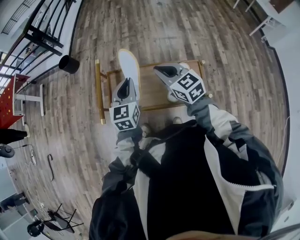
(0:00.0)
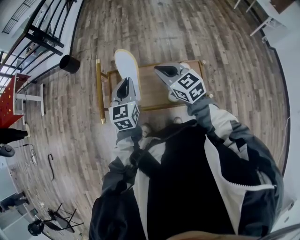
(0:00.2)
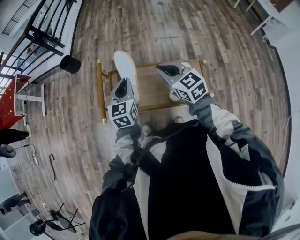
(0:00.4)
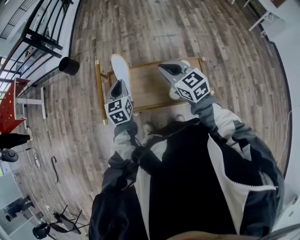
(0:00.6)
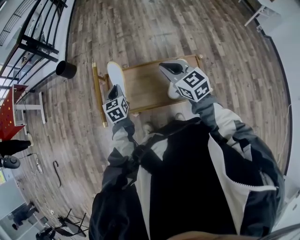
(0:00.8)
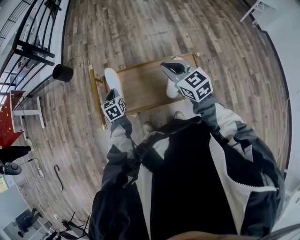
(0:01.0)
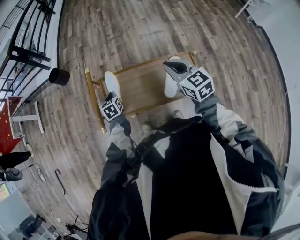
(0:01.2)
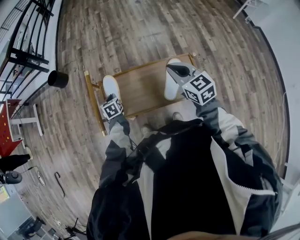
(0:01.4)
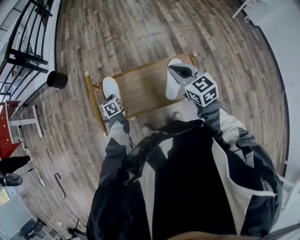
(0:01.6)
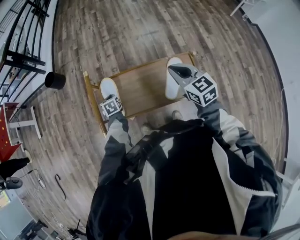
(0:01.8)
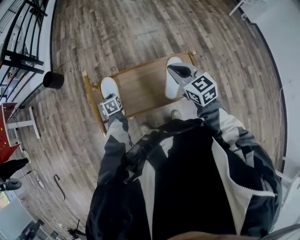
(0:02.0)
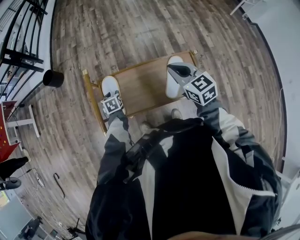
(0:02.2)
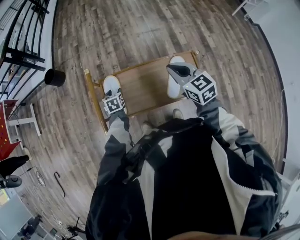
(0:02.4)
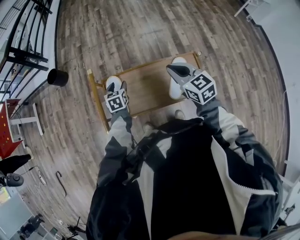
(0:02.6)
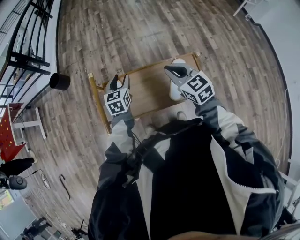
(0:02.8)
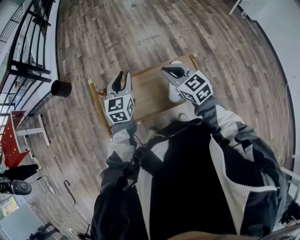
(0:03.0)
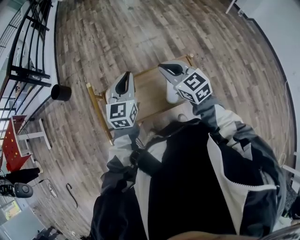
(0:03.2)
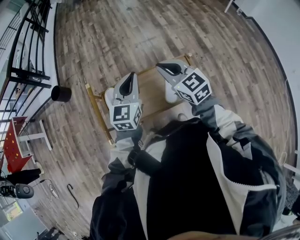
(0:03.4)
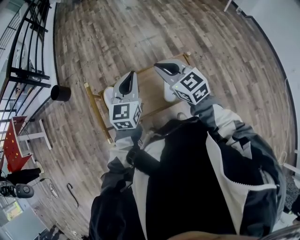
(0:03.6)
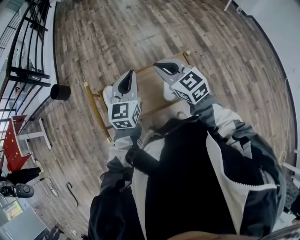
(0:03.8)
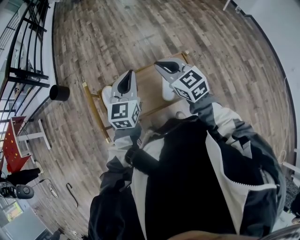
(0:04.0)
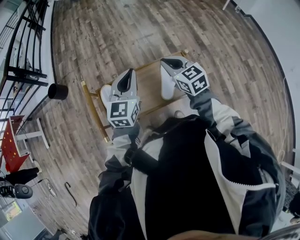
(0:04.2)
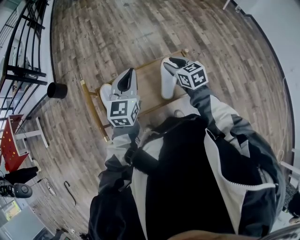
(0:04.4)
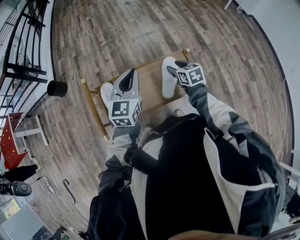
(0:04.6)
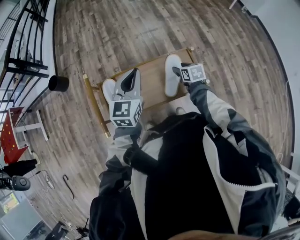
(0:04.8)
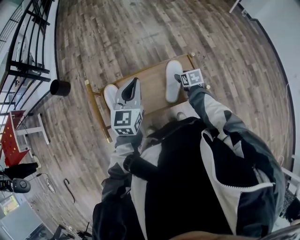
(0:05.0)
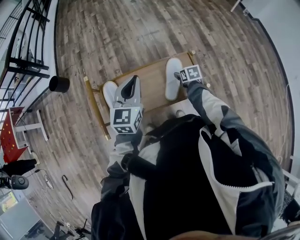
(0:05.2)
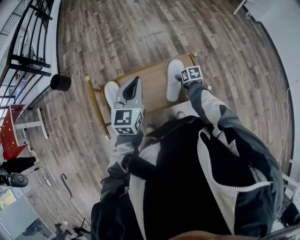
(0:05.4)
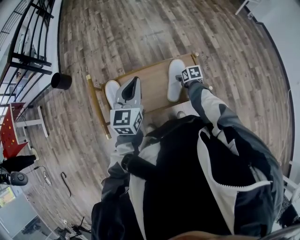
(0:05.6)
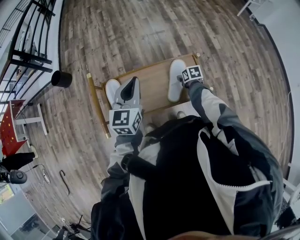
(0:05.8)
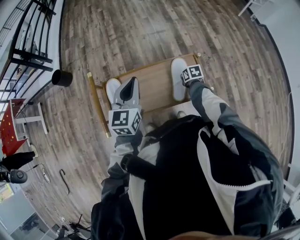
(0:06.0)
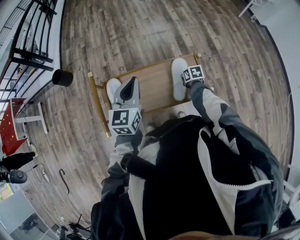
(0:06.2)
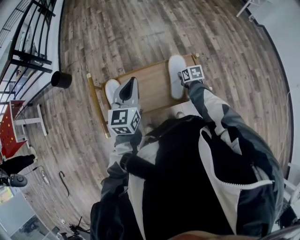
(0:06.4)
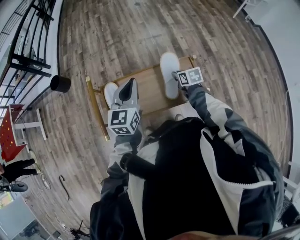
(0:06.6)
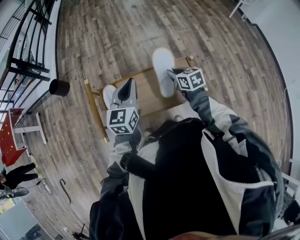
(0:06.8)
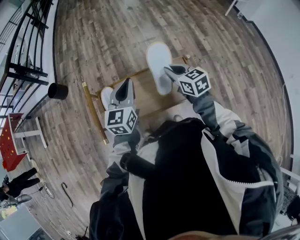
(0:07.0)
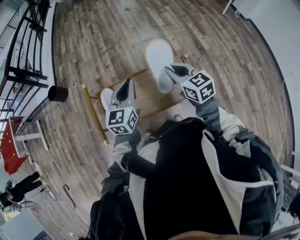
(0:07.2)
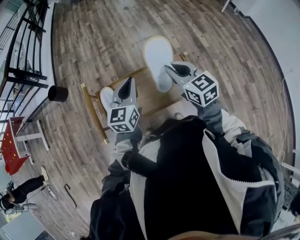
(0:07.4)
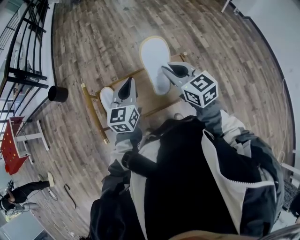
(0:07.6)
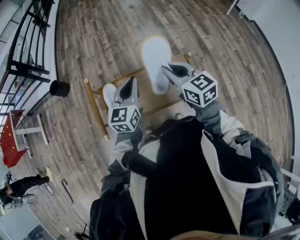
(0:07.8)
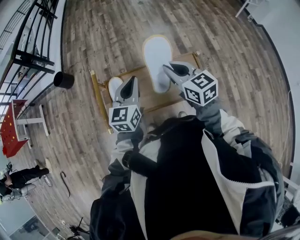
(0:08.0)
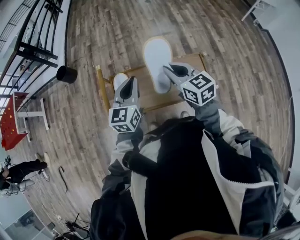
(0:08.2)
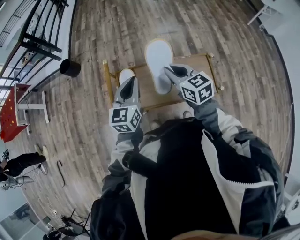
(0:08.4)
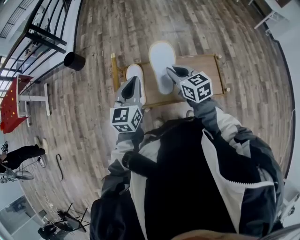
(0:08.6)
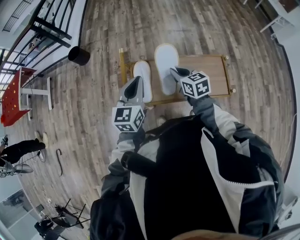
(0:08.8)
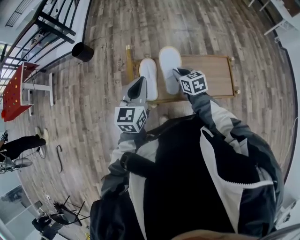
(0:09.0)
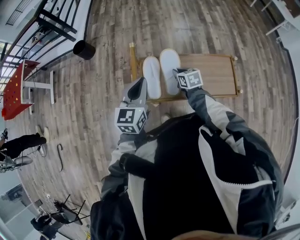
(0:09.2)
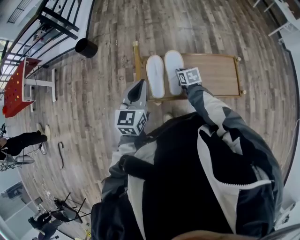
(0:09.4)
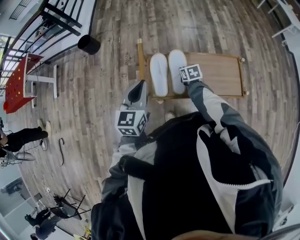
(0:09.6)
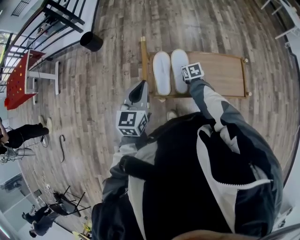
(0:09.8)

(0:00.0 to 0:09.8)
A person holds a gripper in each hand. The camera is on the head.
0:00.0 - 0:01.4: The right gripper goes approximately 10 cm to the right. The left gripper is displaced downward and to the left by approximately 25 cm, and tips its fingers downward by about 30 degrees.
0:01.4 - 0:02.8: The left gripper is displaced upward and to the right by some 15 cm, rotates about 30 degrees, and opens up.
0:02.8 - 0:04.2: The right gripper is displaced to the right by about 5 cm; the left gripper goes roughly 20 cm upward, to the right and backward, turns by some 30 degrees, and closes up.
0:04.2 - 0:05.6: The right gripper moves downward, approximately 30 cm, tilts its fingers approximately 40 degrees downward, and opens.
0:05.6 - 0:07.0: The right gripper moves upward, some 25 cm, angles its fingers upward, by approximately 30 degrees, and closes.
0:07.0 - 0:08.4: The grippers both shift to the left by approximately 10 cm.
0:08.4 - 0:09.8: The right gripper travels downward by approximately 30 cm, and angles its fingers downward, by some 40 degrees. Meanwhile the left gripper is displaced to the left by approximately 15 cm.

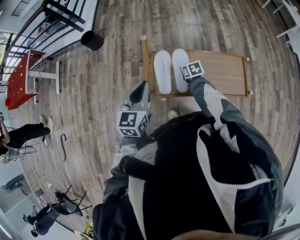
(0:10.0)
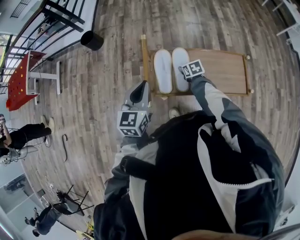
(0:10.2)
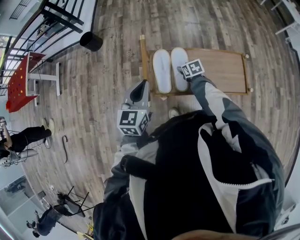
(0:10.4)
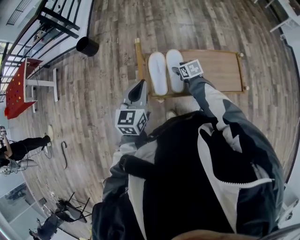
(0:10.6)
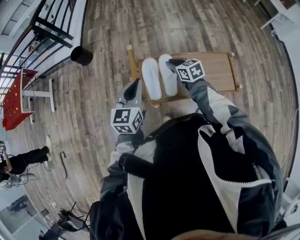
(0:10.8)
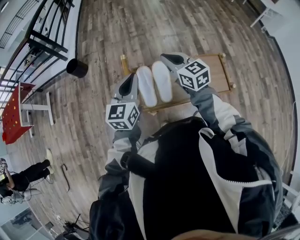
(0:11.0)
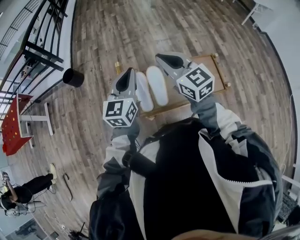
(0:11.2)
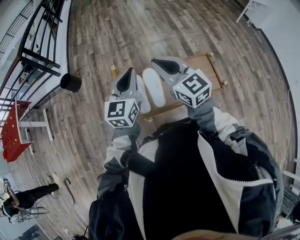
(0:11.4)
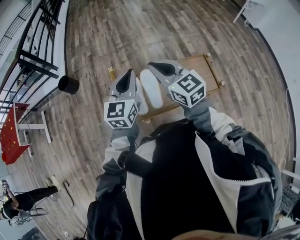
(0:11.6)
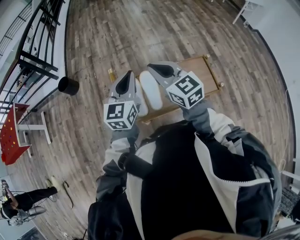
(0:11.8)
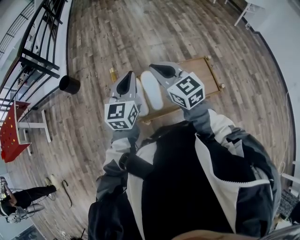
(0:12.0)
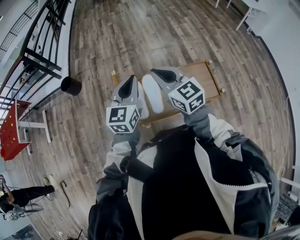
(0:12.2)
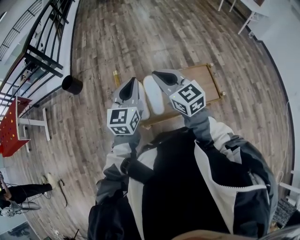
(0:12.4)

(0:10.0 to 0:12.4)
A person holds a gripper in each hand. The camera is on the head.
0:10.0 - 0:11.2: The right gripper shifts roughly 40 cm upward, tilts its fingers about 50 degrees upward, and closes its fingers; the left gripper goes roughly 15 cm upward, to the right and forward.
0:11.2 - 0:12.4: The grippers stay close to where they were, moving slightly.

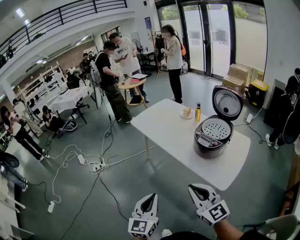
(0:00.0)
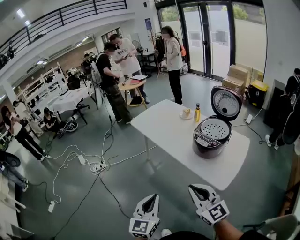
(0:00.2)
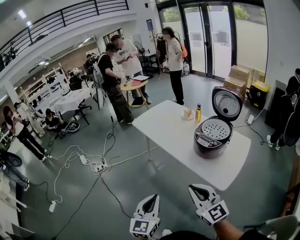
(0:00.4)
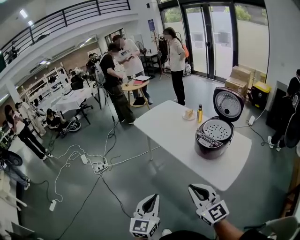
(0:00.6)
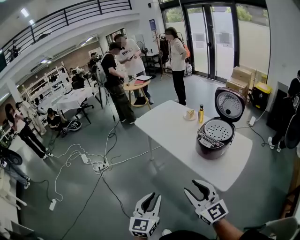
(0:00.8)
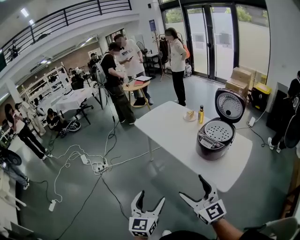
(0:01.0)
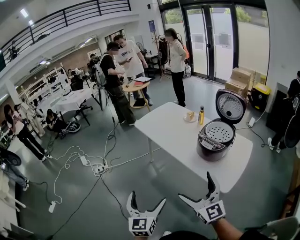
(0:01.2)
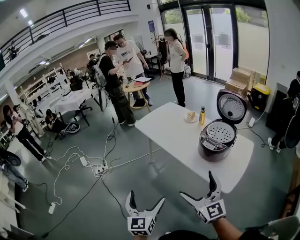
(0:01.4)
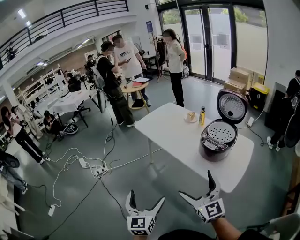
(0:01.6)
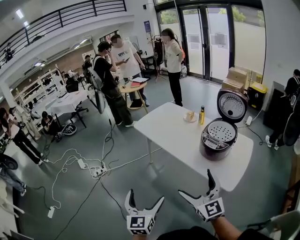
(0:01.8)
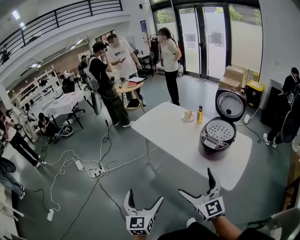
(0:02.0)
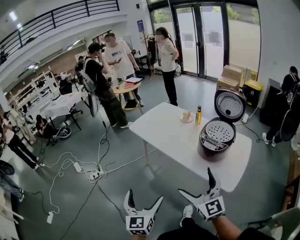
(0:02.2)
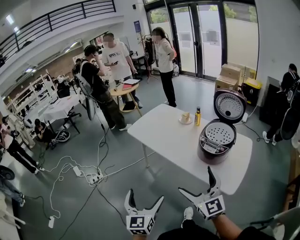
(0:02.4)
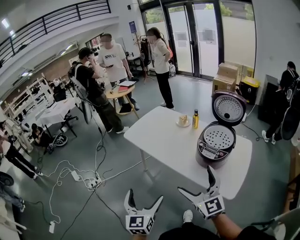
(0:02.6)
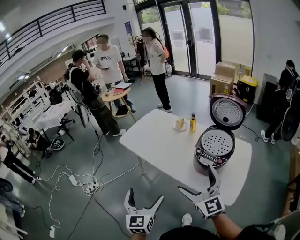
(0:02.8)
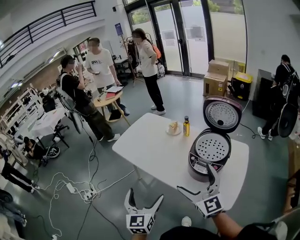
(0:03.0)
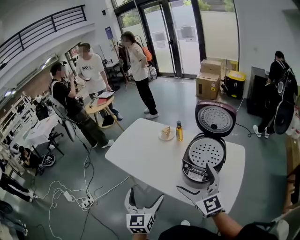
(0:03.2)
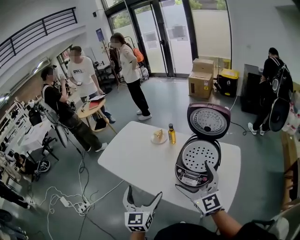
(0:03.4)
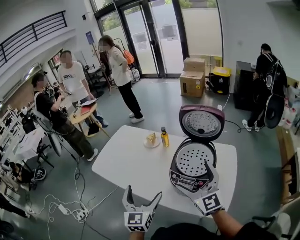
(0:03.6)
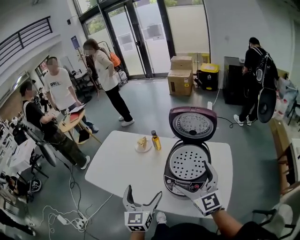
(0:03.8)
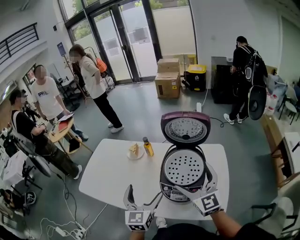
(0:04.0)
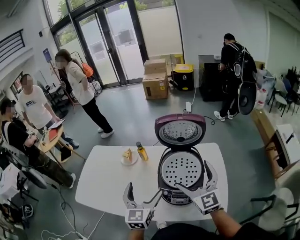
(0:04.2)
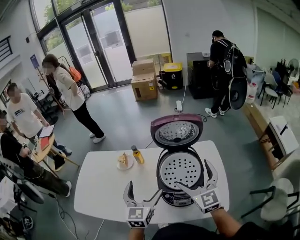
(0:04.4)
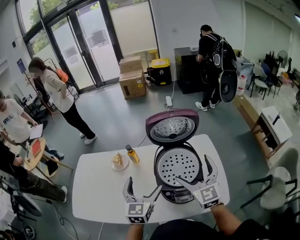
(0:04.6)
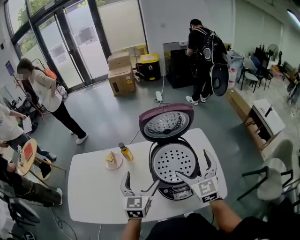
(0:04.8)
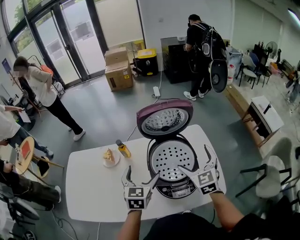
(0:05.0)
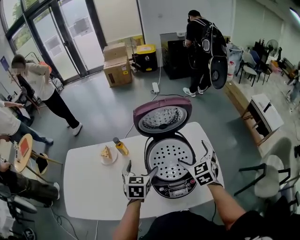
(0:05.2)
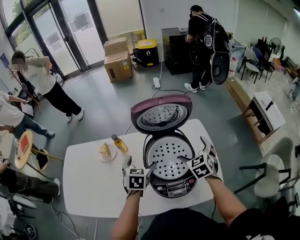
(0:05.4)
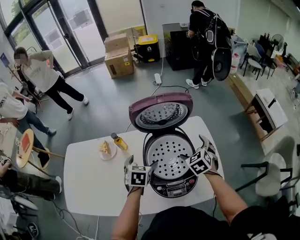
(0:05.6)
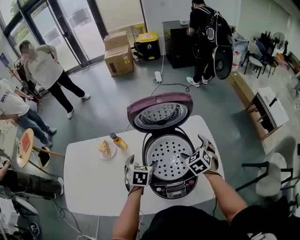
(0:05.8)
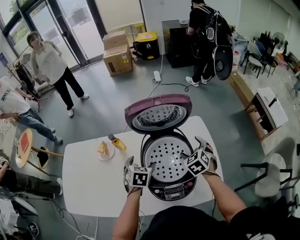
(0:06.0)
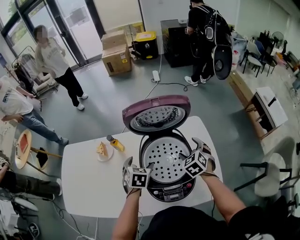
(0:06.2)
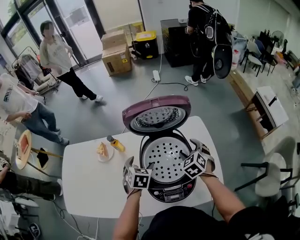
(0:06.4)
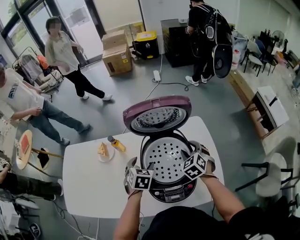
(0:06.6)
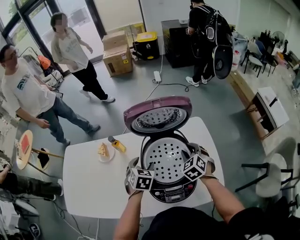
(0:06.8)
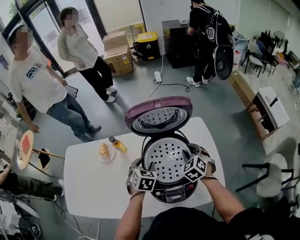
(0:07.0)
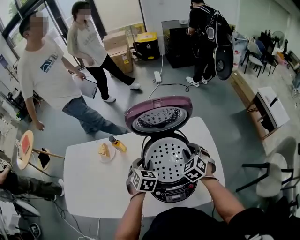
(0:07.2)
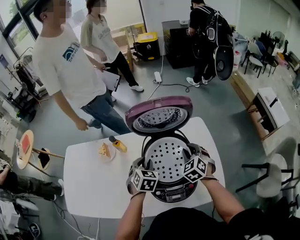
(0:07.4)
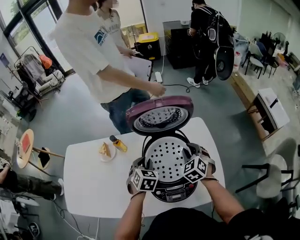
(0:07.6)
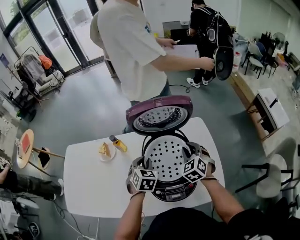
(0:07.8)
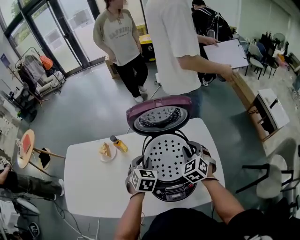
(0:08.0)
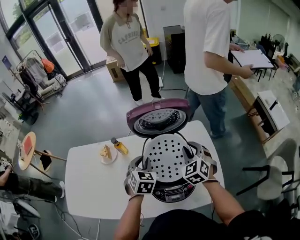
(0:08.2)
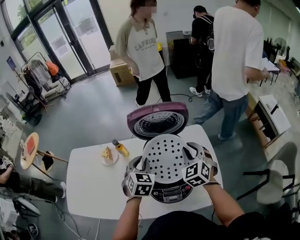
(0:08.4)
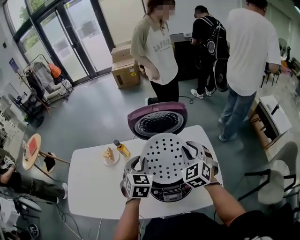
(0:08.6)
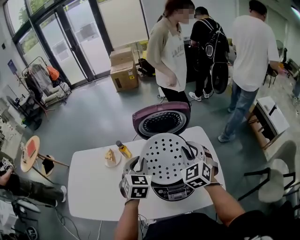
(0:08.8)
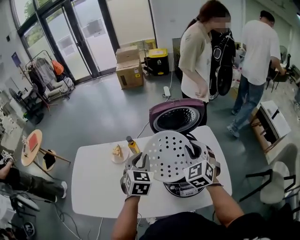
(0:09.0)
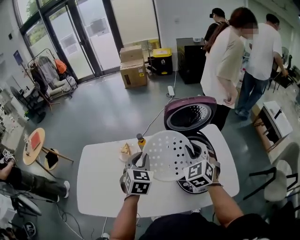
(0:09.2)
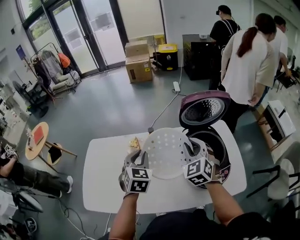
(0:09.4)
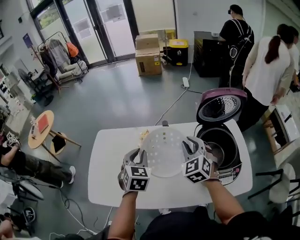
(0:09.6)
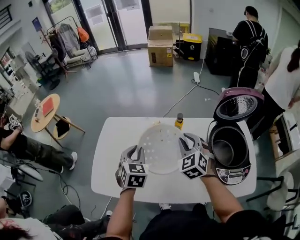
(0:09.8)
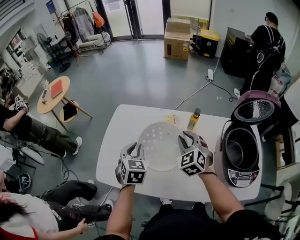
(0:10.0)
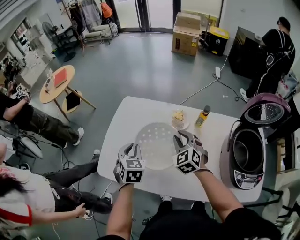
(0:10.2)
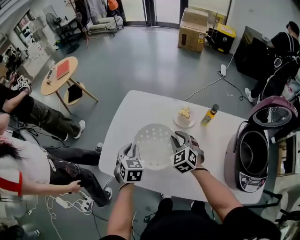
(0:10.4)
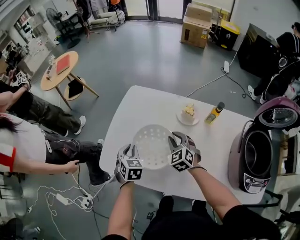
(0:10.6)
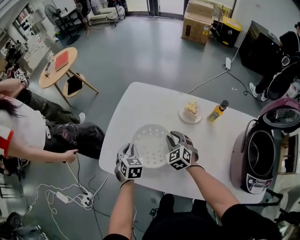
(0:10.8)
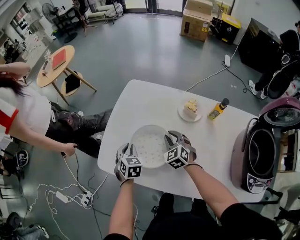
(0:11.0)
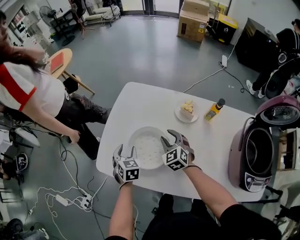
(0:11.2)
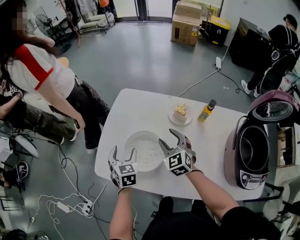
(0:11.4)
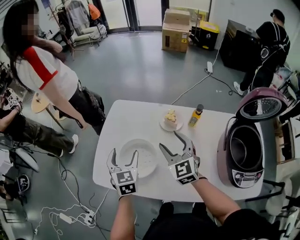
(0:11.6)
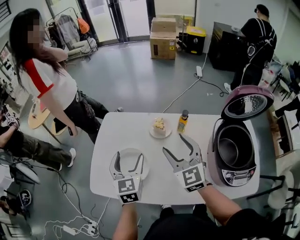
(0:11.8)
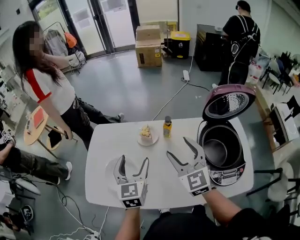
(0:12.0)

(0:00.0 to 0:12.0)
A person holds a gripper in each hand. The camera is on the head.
0:00.0 - 0:01.6: The left gripper moves to the left, about 5 cm, and opens up. Meanwhile the right gripper moves about 5 cm, and opens up.
0:01.6 - 0:03.0: The grippers both shift forward and to the right by about 25 cm.
0:03.0 - 0:04.4: The left gripper changes place by some 35 cm, and rotates roughly 40 degrees; the right gripper moves some 25 cm, and swivels roughly 40 degrees.
0:04.4 - 0:06.0: Both grippers move downward and forward, some 20 cm. The left gripper angles its fingers downward, by some 40 degrees, while the right gripper tilts its fingers approximately 40 degrees downward.
0:06.0 - 0:07.6: The right gripper closes its fingers. Meanwhile the left gripper closes its fingers.
0:07.6 - 0:09.0: Both grippers travel together upward and to the left, roughly 15 cm.
0:09.0 - 0:10.4: Both grippers are carried roughly 50 cm. The left gripper rotates approximately 30 degrees. The right gripper changes its angle by about 30 degrees.
0:10.4 - 0:12.0: The right gripper moves upward, to the right and backward, about 25 cm, and swivels about 30 degrees; the left gripper goes roughly 25 cm to the right and upward, turns by approximately 30 degrees, and opens.
